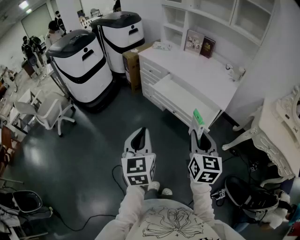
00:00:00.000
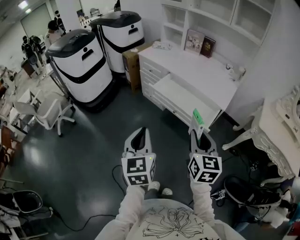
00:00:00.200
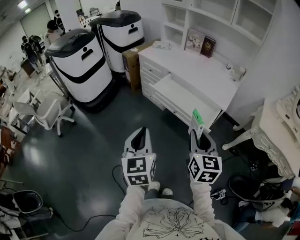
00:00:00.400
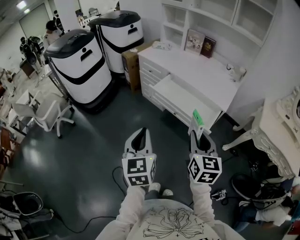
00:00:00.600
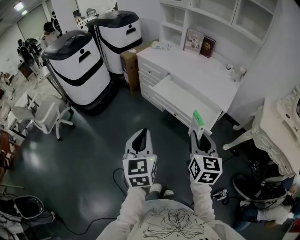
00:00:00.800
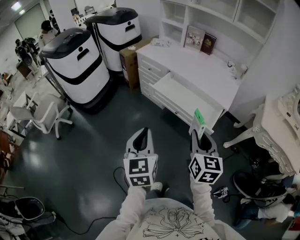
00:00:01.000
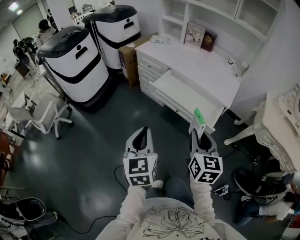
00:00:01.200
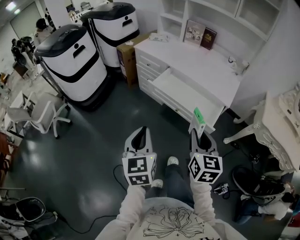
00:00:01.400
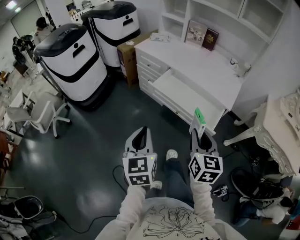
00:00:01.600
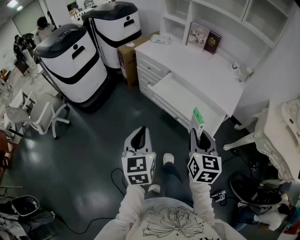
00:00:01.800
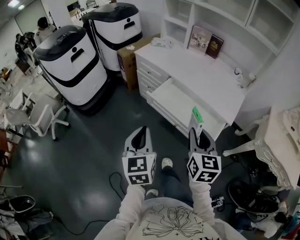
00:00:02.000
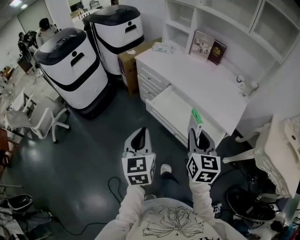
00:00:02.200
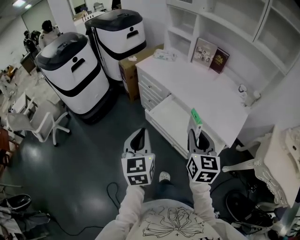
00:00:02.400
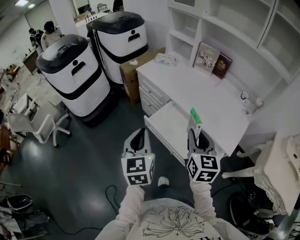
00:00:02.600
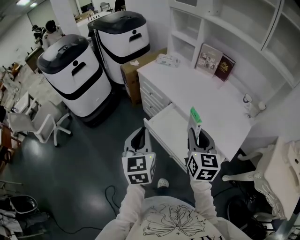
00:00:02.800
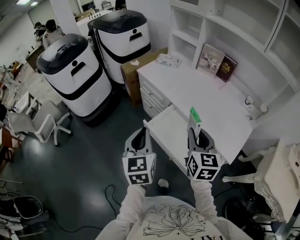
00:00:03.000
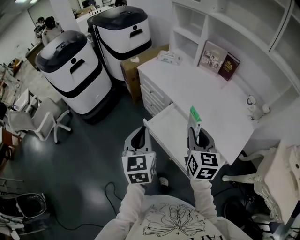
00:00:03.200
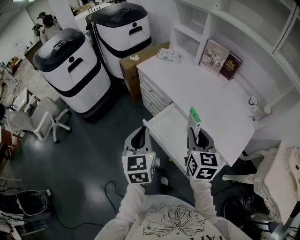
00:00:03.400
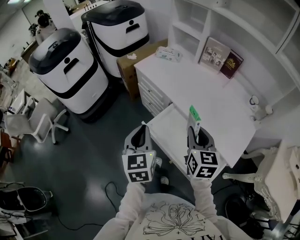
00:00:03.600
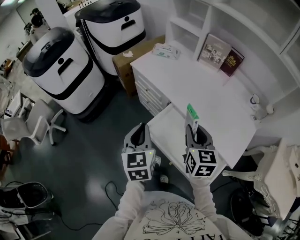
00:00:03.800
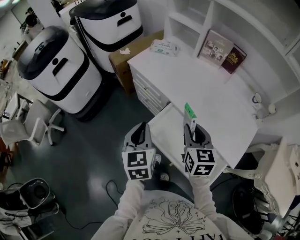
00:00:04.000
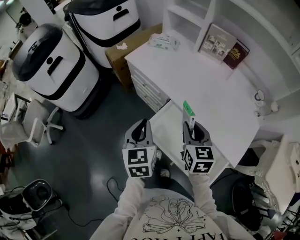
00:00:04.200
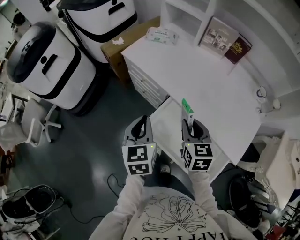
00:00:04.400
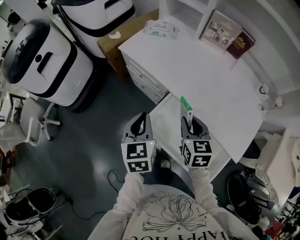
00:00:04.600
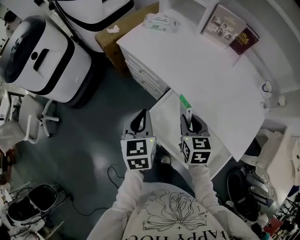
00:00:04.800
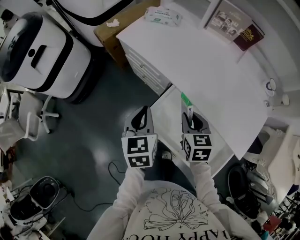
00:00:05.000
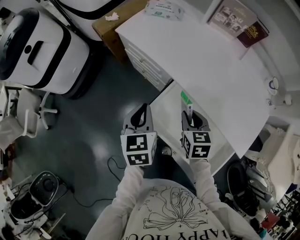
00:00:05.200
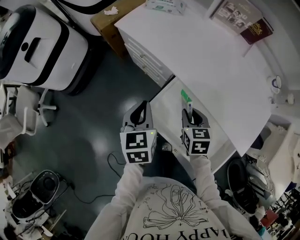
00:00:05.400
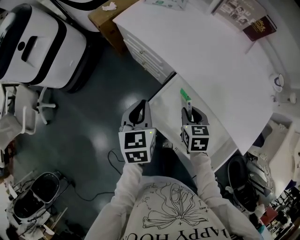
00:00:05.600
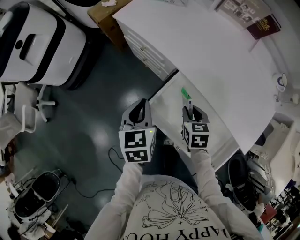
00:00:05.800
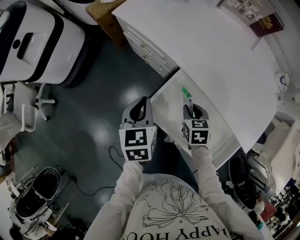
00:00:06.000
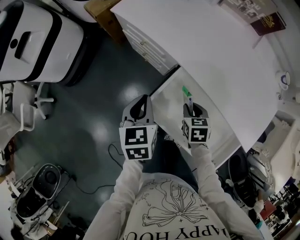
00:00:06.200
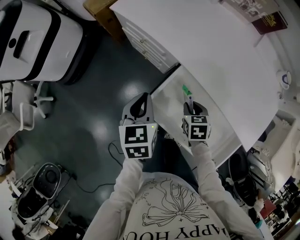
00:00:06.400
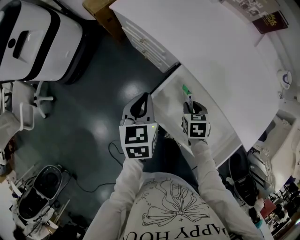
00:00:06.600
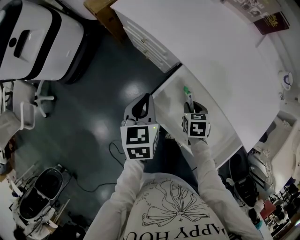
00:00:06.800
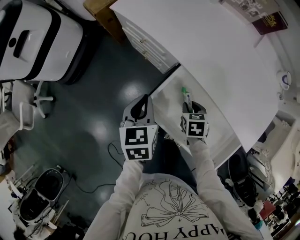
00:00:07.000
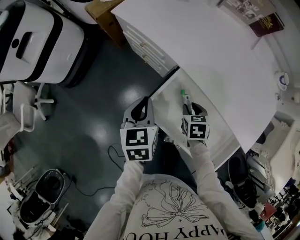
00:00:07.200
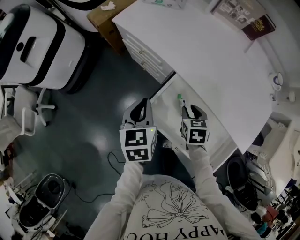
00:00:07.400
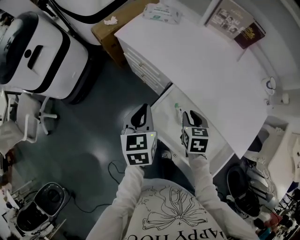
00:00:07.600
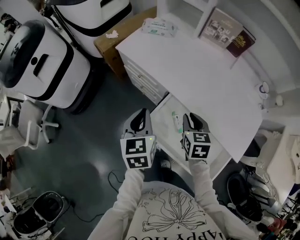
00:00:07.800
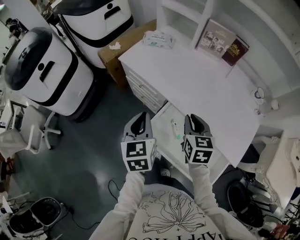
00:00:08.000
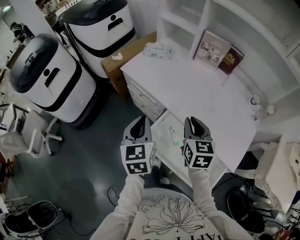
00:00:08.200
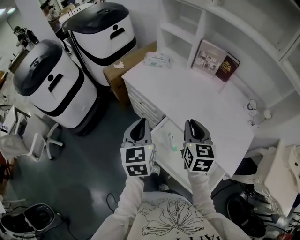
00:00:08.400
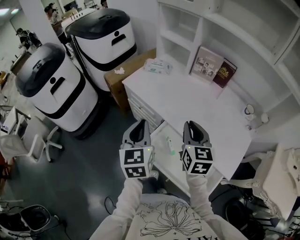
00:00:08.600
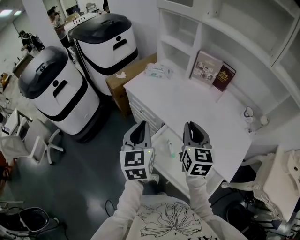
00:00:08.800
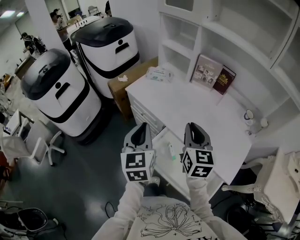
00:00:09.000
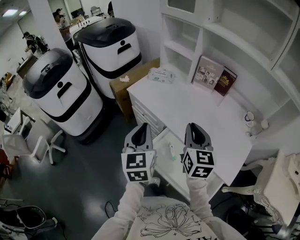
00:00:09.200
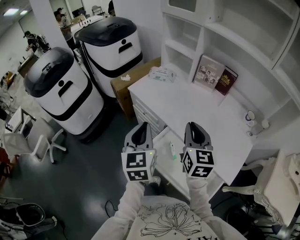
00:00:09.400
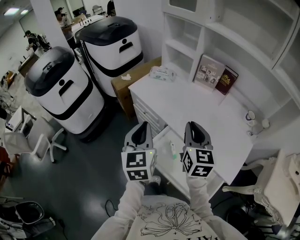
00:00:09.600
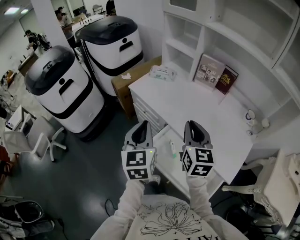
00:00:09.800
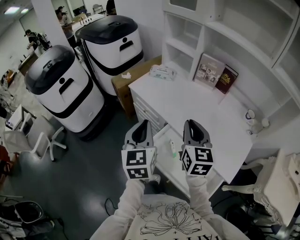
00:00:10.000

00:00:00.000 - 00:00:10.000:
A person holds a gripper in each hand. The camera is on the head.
00:00:00.000 - 00:00:01.400: The grippers both shift forward by about 5 cm.
00:00:01.400 - 00:00:02.800: Both grippers travel together forward, approximately 30 cm.
00:00:02.800 - 00:00:04.200: Both grippers travel together forward and downward, roughly 20 cm.
00:00:04.200 - 00:00:05.800: The left gripper travels downward and forward by some 15 cm; the right gripper moves downward, about 20 cm, and turns by approximately 30 degrees.
00:00:05.800 - 00:00:07.200: The right gripper changes place by roughly 5 cm.
00:00:07.200 - 00:00:08.600: The right gripper is displaced upward by some 35 cm, and angles its fingers upward, by about 40 degrees. Meanwhile the left gripper shifts roughly 25 cm upward, and turns by some 30 degrees.
00:00:08.600 - 00:00:10.000: There are only small adjustments of the grippers.

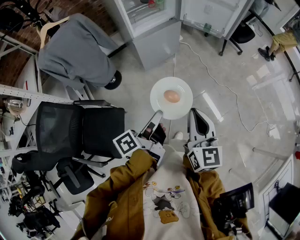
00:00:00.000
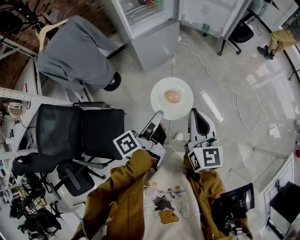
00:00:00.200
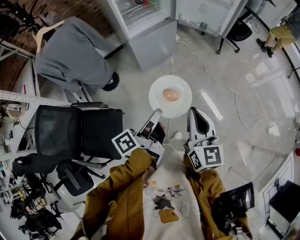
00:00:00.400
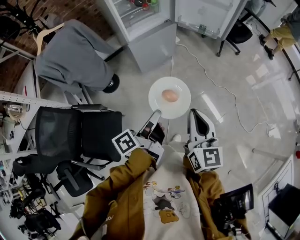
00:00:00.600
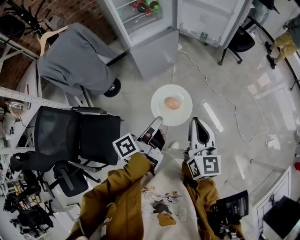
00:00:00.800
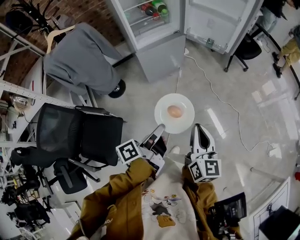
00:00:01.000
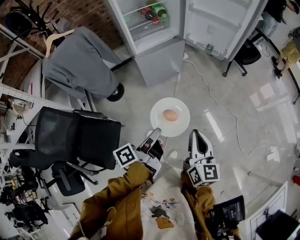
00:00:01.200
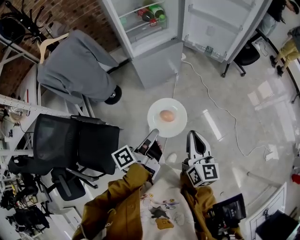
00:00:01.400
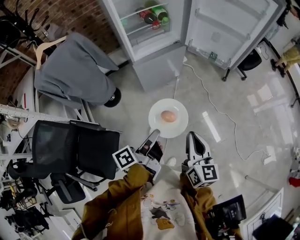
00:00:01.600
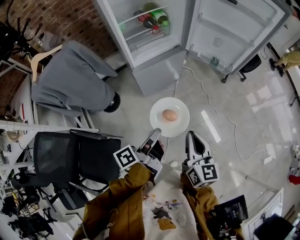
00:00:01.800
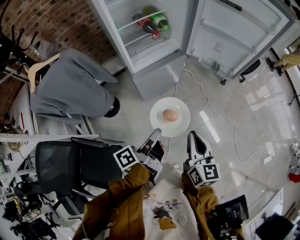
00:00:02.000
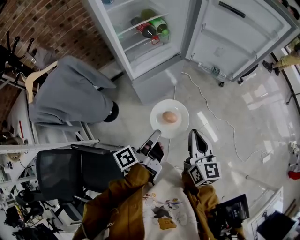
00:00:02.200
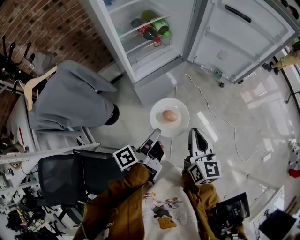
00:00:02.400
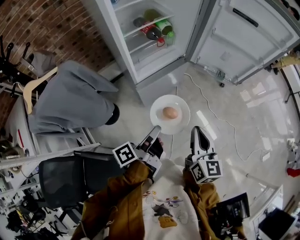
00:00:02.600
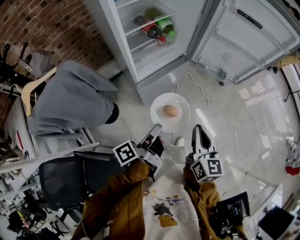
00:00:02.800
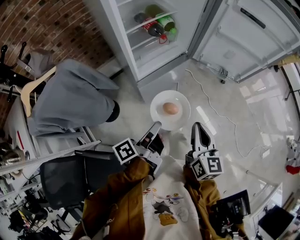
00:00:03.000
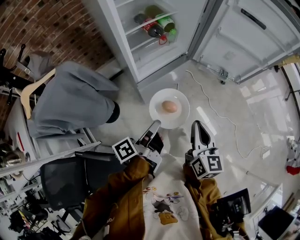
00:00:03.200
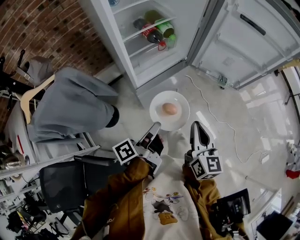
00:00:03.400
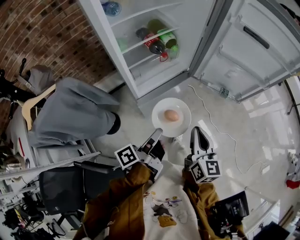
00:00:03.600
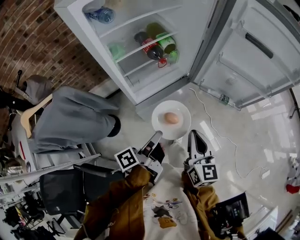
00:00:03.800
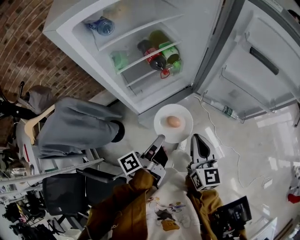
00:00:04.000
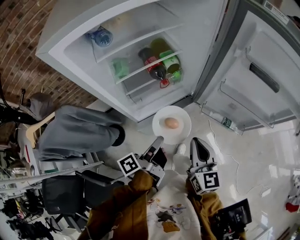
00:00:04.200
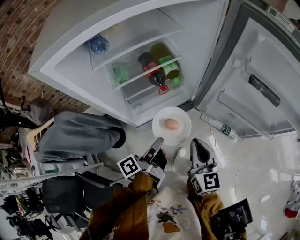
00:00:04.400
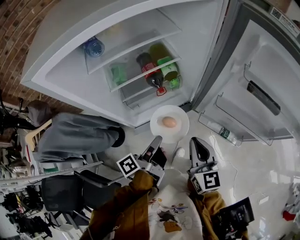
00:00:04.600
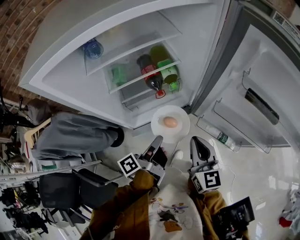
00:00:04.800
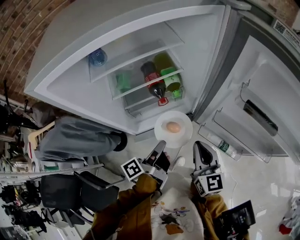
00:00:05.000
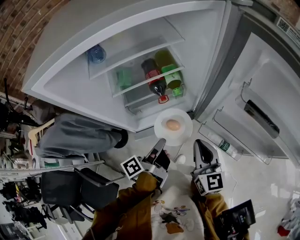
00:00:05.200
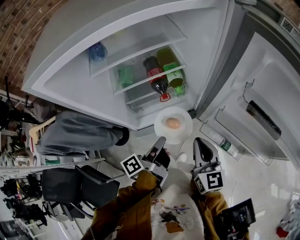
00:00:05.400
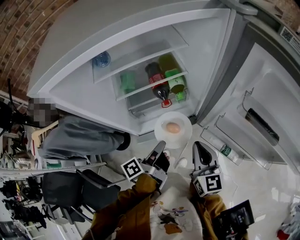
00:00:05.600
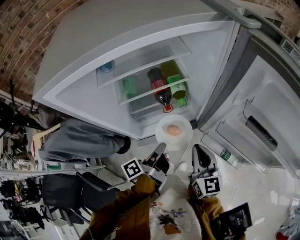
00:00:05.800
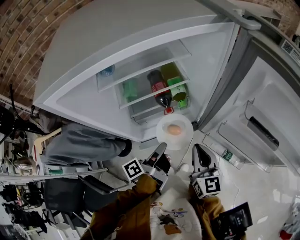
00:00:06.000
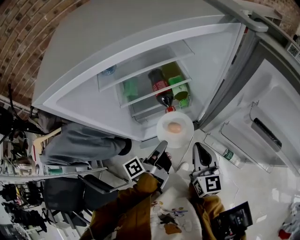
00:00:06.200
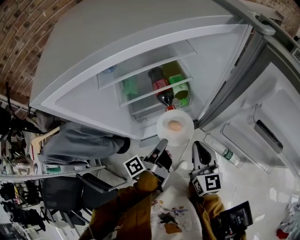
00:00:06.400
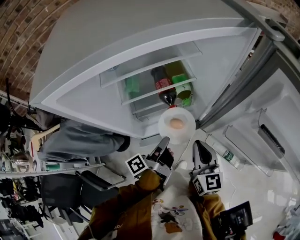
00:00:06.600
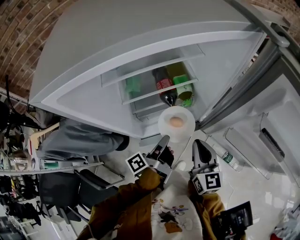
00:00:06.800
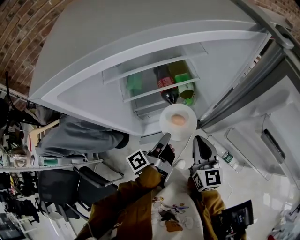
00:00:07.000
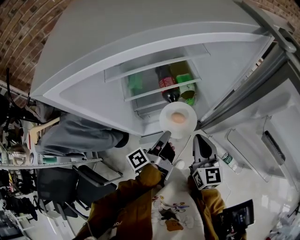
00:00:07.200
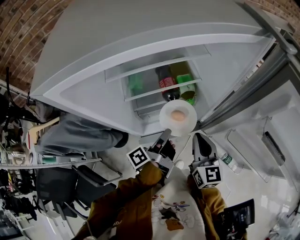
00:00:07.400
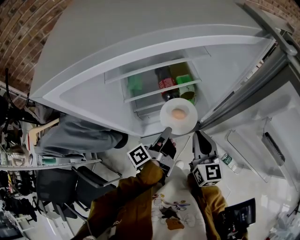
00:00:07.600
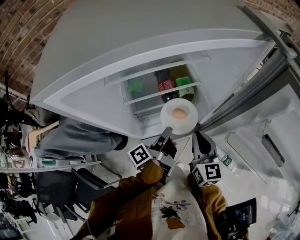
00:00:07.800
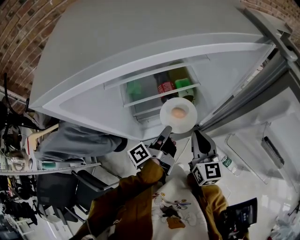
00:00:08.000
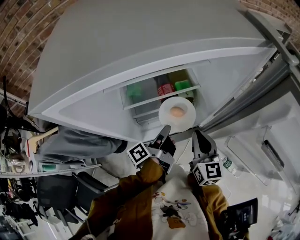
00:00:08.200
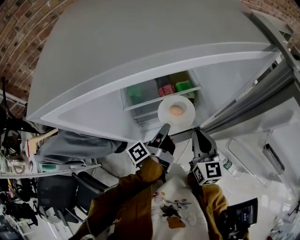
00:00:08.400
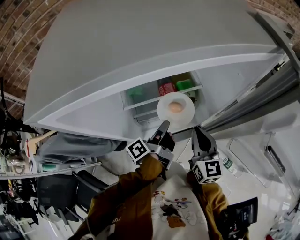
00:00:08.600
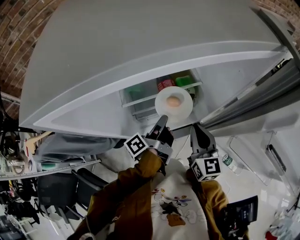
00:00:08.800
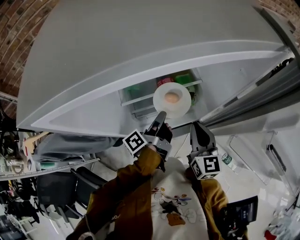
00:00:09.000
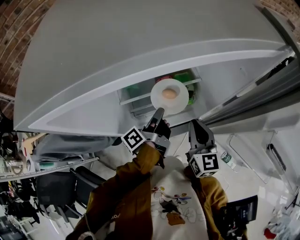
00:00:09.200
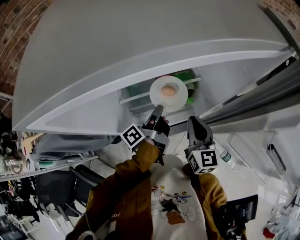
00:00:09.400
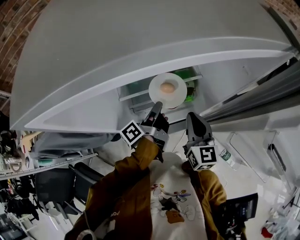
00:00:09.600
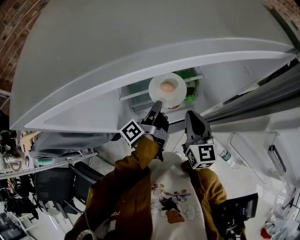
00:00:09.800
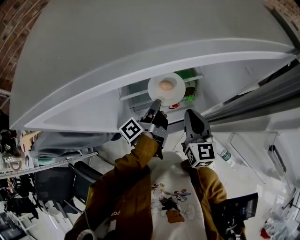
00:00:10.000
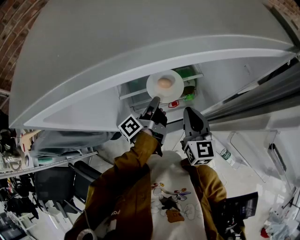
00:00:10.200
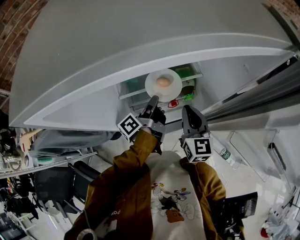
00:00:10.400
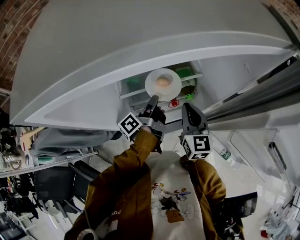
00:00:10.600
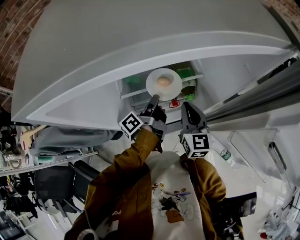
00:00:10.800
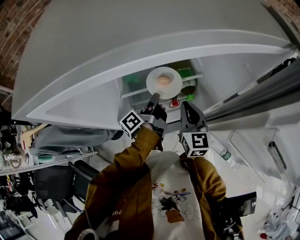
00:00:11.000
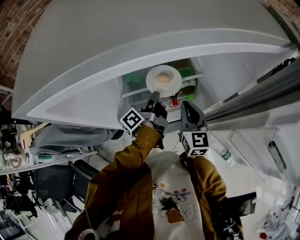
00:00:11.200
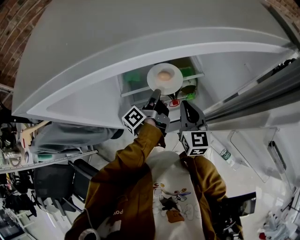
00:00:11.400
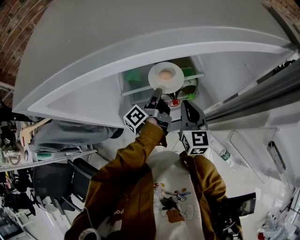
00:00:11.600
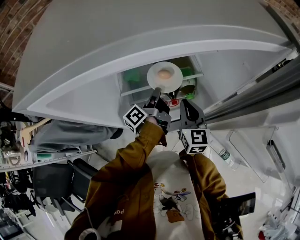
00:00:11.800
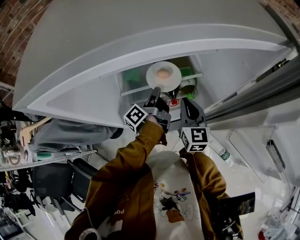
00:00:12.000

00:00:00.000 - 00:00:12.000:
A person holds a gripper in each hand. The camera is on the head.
00:00:00.000 - 00:00:01.600: The right gripper shifts by roughly 15 cm.
00:00:01.600 - 00:00:03.000: The right gripper changes place by about 25 cm.
00:00:03.000 - 00:00:04.400: The right gripper moves some 25 cm, and changes its angle by roughly 20 degrees.
00:00:04.400 - 00:00:06.000: The right gripper moves about 10 cm.
00:00:06.000 - 00:00:07.600: The right gripper shifts by some 10 cm.
00:00:07.600 - 00:00:09.000: The right gripper ends up about 5 cm from where it was.
00:00:09.000 - 00:00:10.400: The right gripper shifts by about 5 cm.

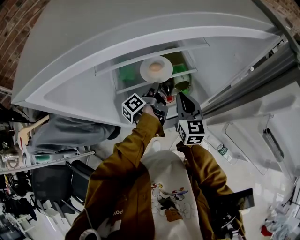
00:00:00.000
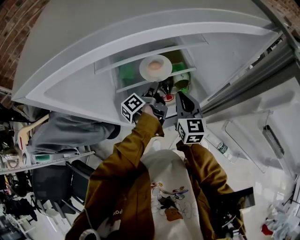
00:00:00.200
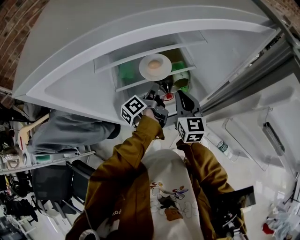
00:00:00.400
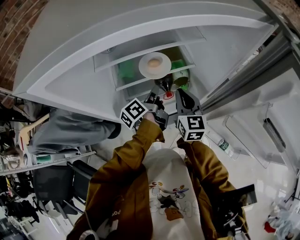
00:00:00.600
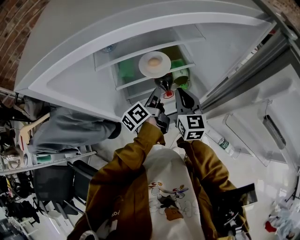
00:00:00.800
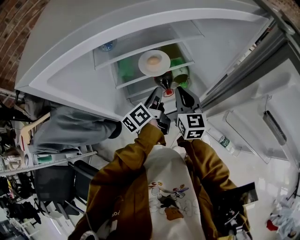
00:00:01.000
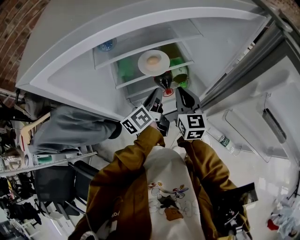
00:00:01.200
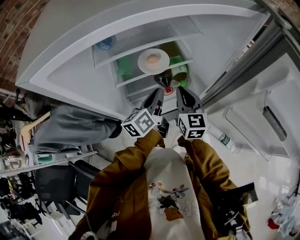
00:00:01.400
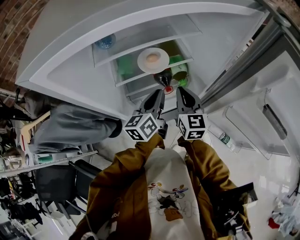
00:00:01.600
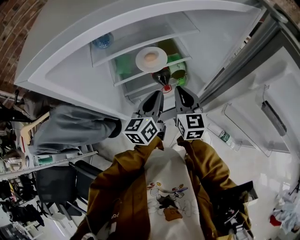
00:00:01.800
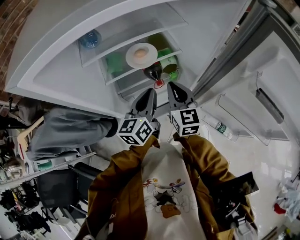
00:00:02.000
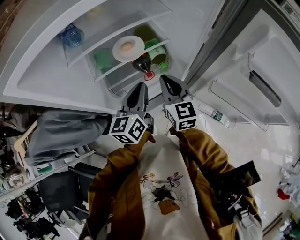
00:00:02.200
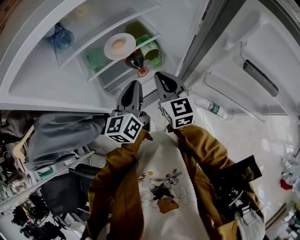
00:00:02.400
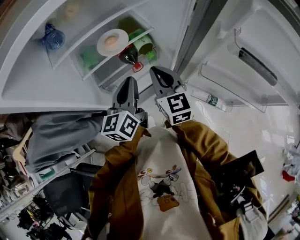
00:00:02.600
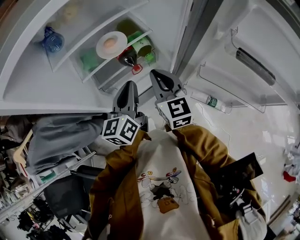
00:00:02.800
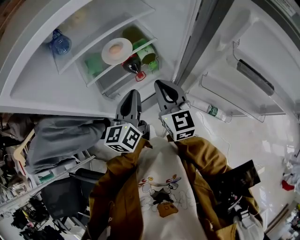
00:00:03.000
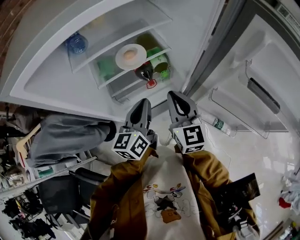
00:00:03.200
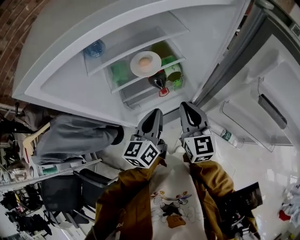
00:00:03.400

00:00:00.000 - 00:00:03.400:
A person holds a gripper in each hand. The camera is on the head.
00:00:01.600 - 00:00:03.400: The right gripper shifts by roughly 10 cm.
